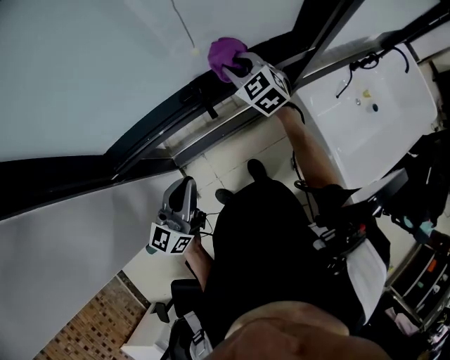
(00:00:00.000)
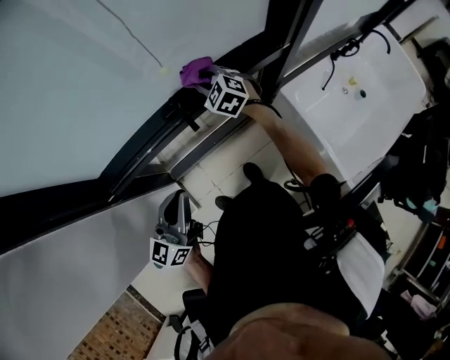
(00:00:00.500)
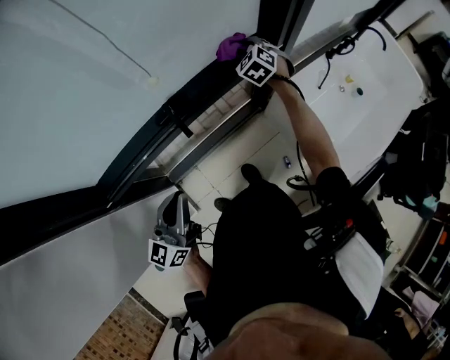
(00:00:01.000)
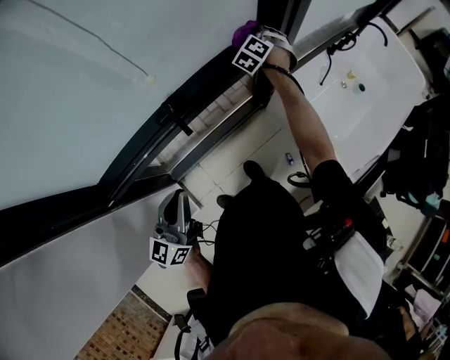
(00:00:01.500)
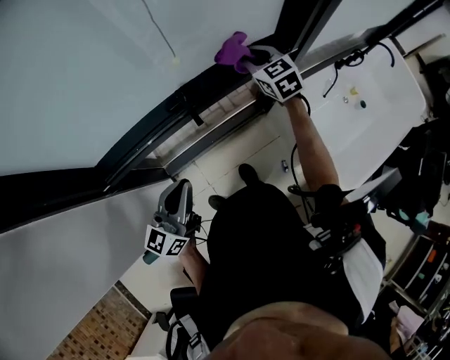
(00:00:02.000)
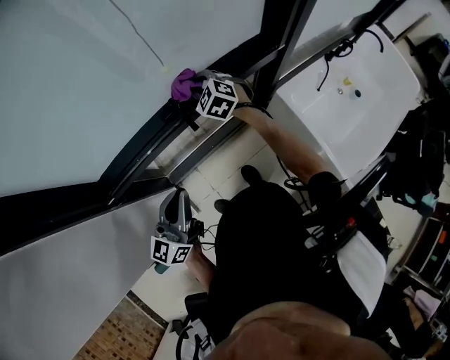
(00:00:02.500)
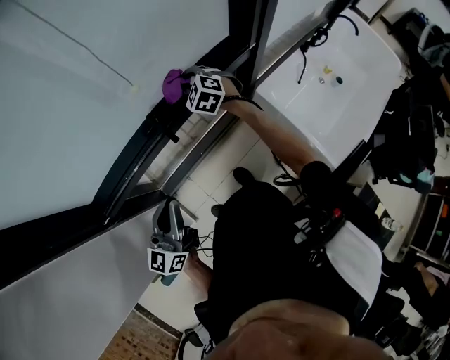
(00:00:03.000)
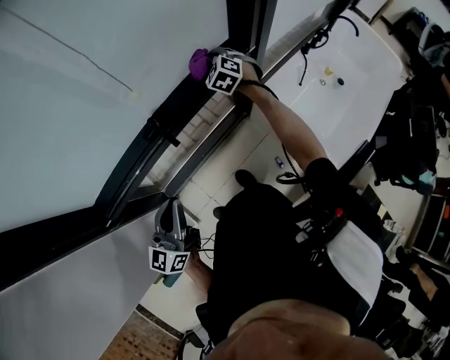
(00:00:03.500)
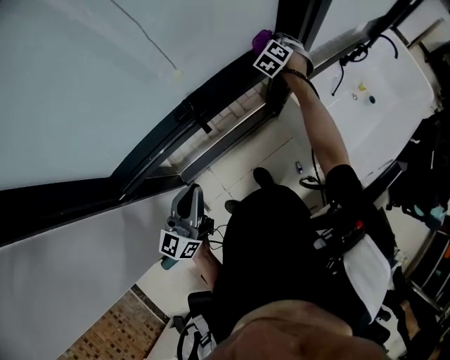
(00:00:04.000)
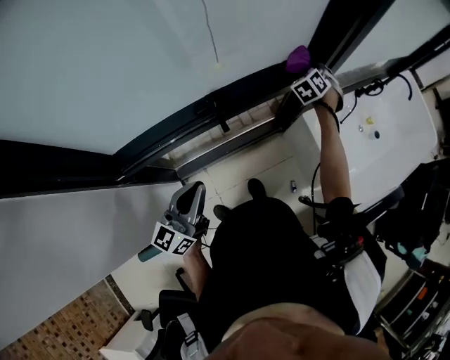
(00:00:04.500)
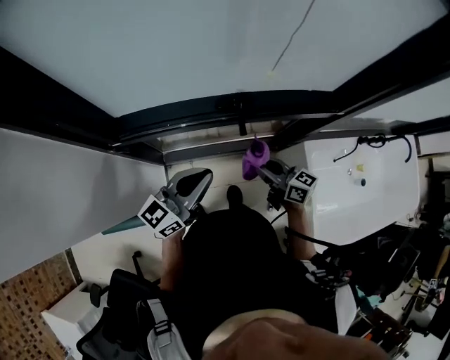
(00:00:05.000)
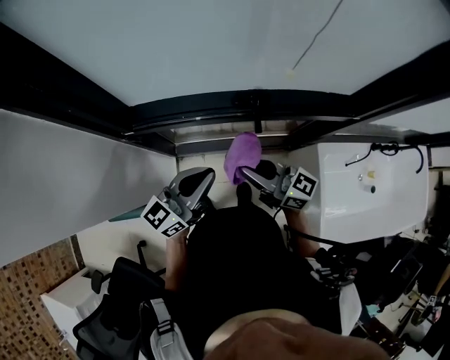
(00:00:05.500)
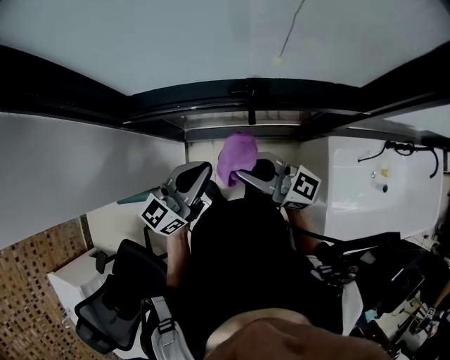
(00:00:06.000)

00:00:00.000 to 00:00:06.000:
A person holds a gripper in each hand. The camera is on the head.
00:00:00.000 to 00:00:02.000: The right gripper travels downward and back again, some 5 cm each way.
00:00:02.000 to 00:00:04.000: The right gripper ends up roughly 20 cm from where it was, and changes its angle by approximately 50 degrees.
00:00:04.000 to 00:00:06.000: The right gripper changes place by approximately 50 cm, and tips its fingers upward by some 50 degrees.

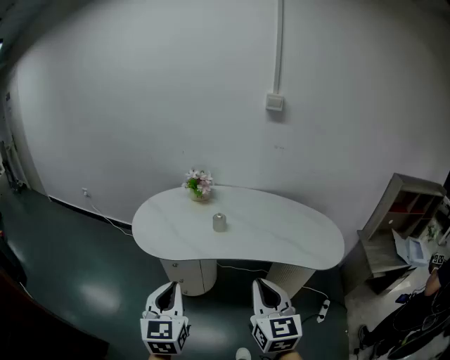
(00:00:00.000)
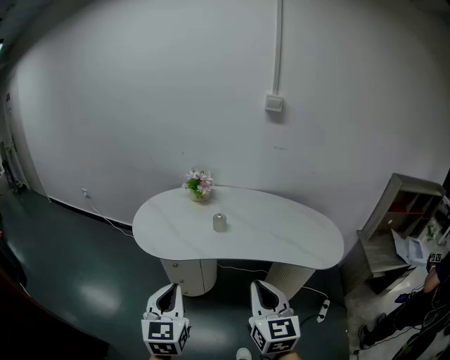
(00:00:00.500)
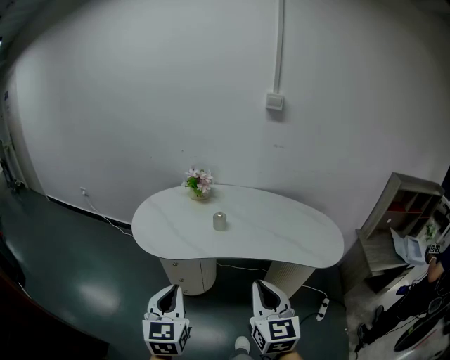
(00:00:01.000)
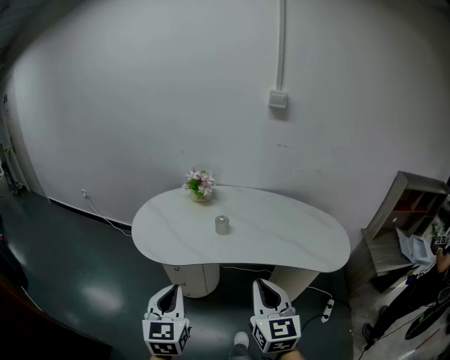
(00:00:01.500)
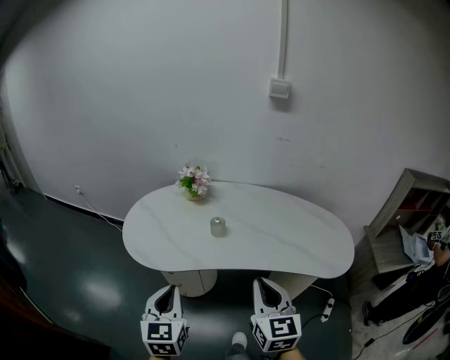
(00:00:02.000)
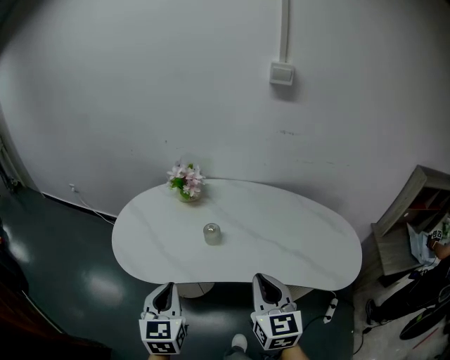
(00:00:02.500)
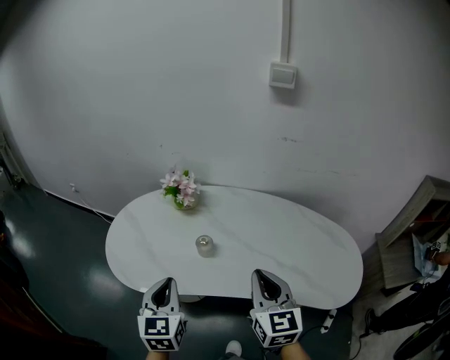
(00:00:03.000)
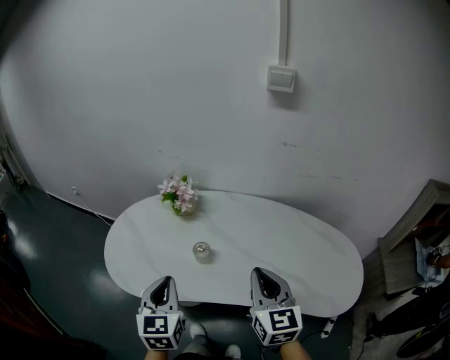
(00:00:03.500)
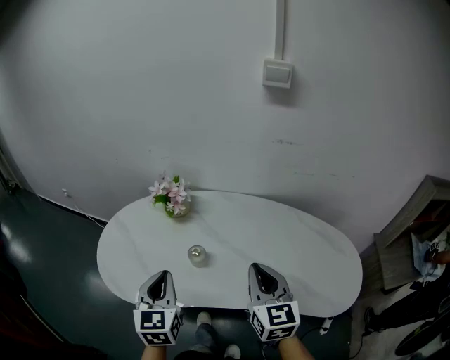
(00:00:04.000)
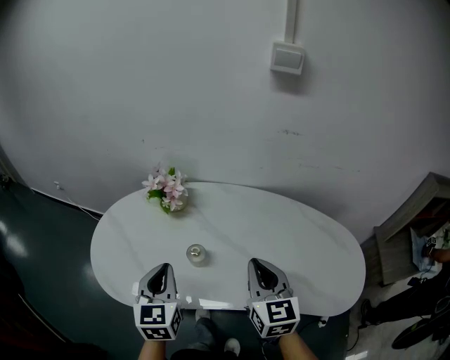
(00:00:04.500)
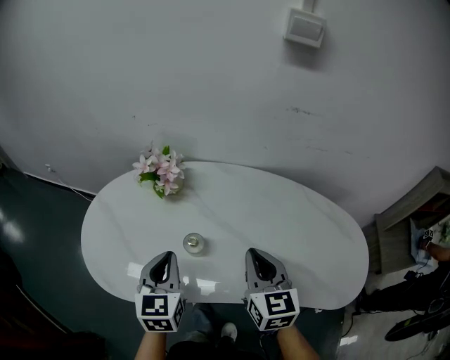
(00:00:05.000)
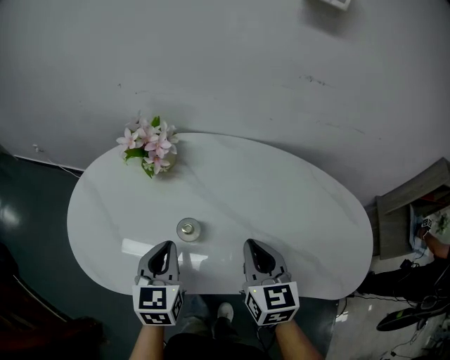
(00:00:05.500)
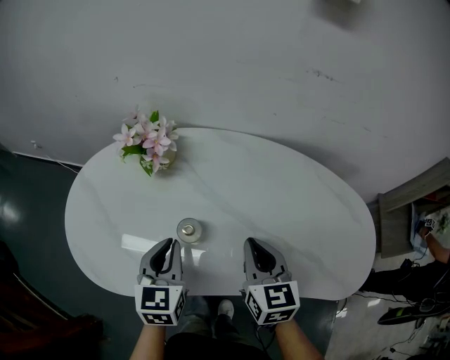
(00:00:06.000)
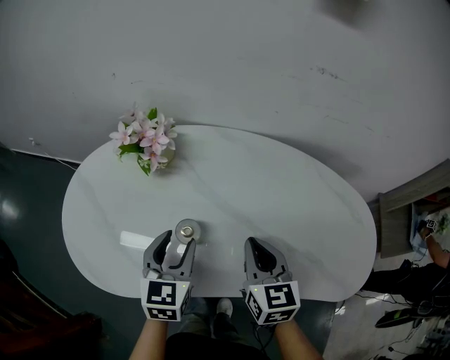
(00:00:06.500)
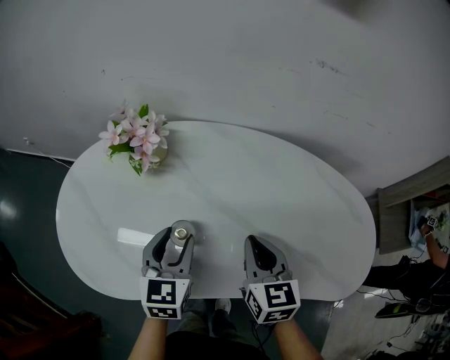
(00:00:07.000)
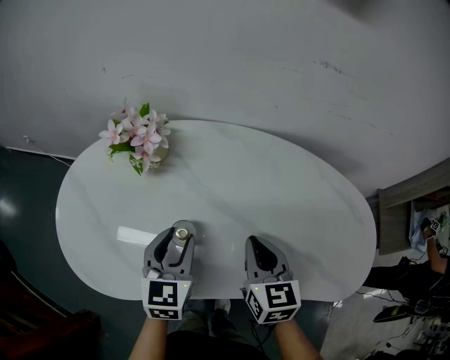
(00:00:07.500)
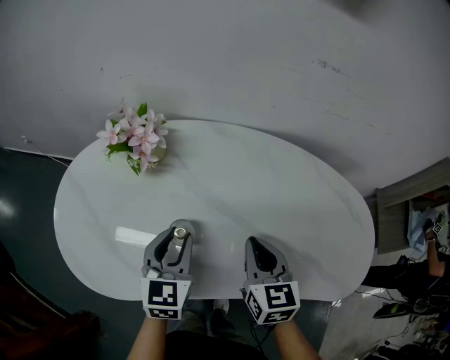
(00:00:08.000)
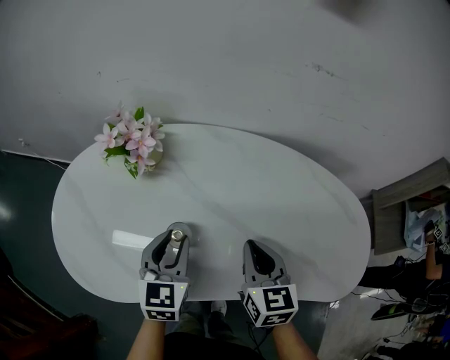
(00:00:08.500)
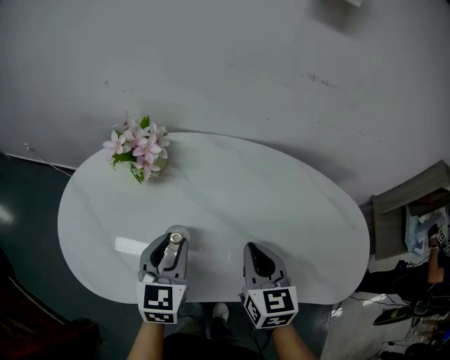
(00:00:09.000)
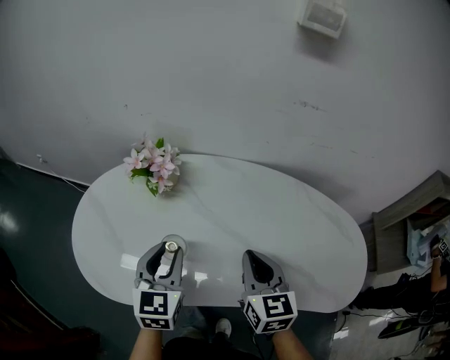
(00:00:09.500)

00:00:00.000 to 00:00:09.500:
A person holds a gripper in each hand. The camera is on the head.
00:00:00.000 to 00:00:02.000: Both grippers move forward, approximately 10 cm.
00:00:02.000 to 00:00:04.000: Both grippers move forward, roughly 20 cm.
00:00:04.000 to 00:00:05.500: The grippers both shift downward and forward by about 15 cm.
00:00:05.500 to 00:00:07.500: The left gripper moves roughly 5 cm, and opens.
00:00:07.500 to 00:00:09.500: The grippers both shift upward by roughly 5 cm.

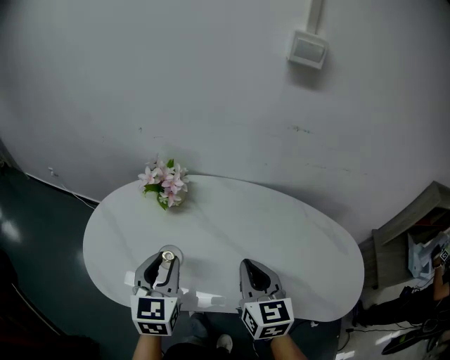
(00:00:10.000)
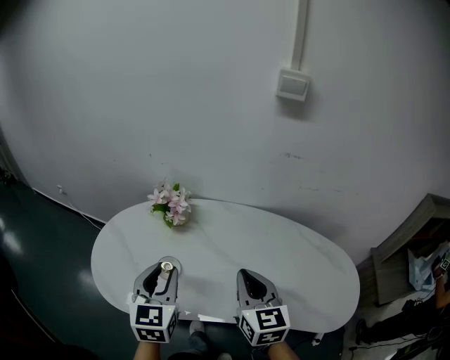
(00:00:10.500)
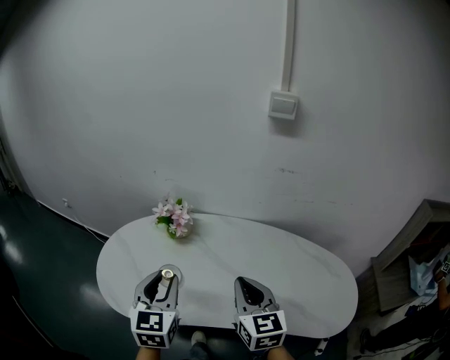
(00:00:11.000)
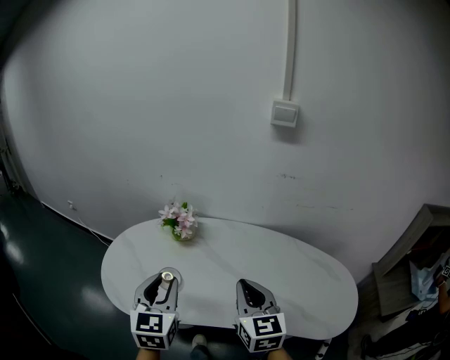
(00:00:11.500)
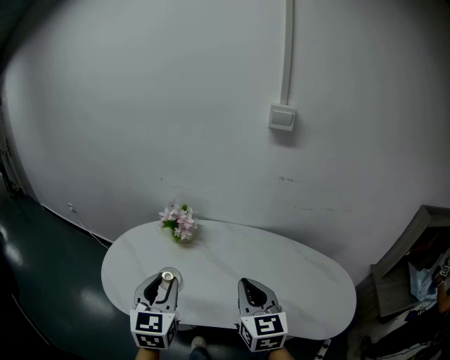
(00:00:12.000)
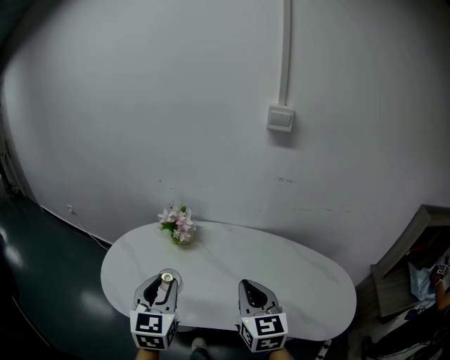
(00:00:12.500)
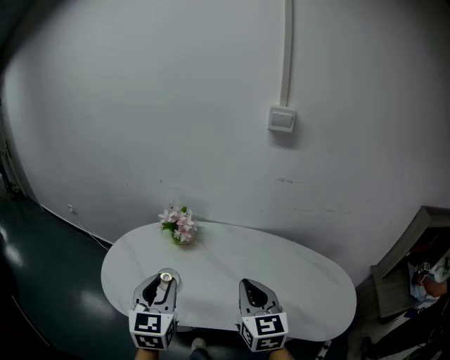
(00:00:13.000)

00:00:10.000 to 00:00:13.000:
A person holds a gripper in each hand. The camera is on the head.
00:00:10.000 to 00:00:11.500: The two grippers go approximately 10 cm upward and backward.
00:00:11.500 to 00:00:13.000: There are only small adjustments of the grippers.

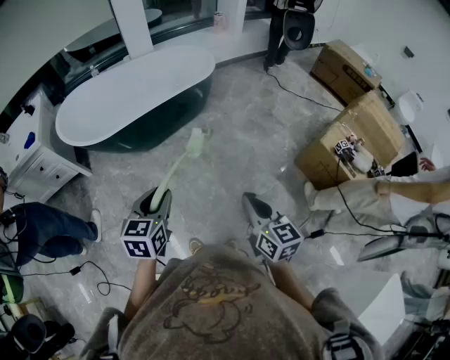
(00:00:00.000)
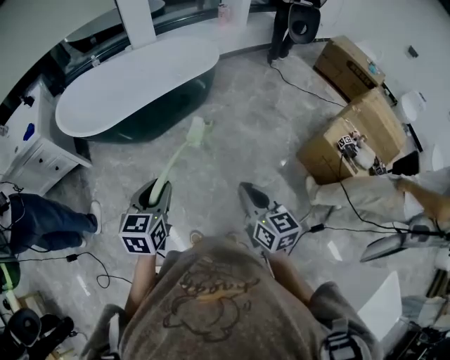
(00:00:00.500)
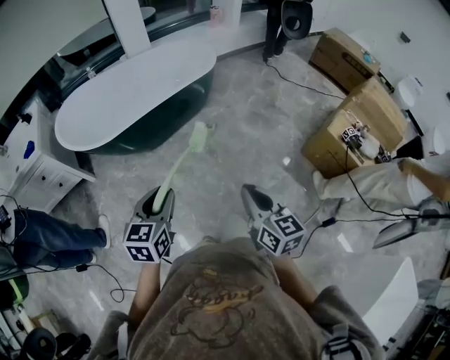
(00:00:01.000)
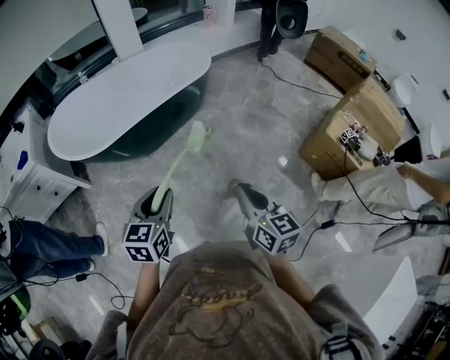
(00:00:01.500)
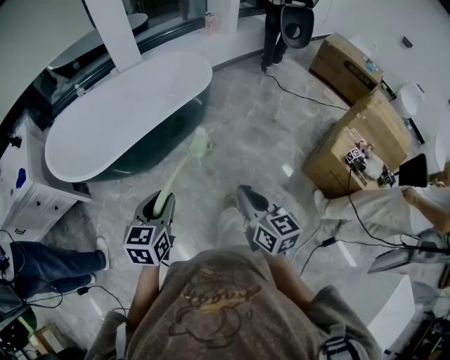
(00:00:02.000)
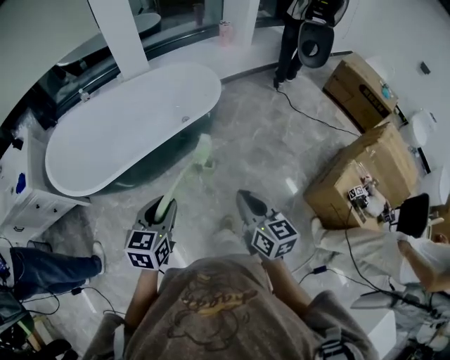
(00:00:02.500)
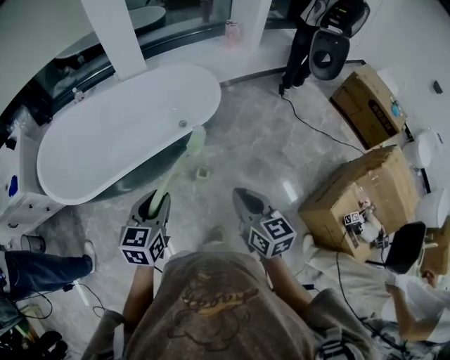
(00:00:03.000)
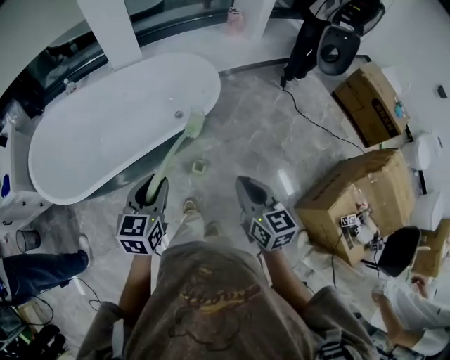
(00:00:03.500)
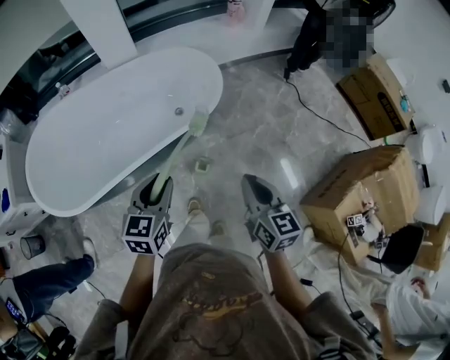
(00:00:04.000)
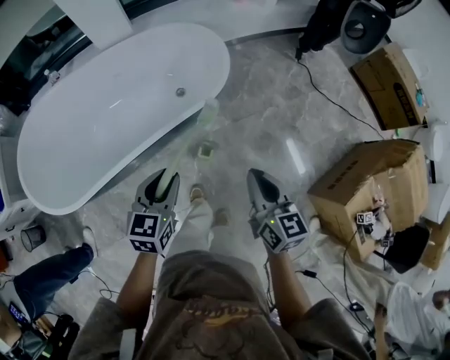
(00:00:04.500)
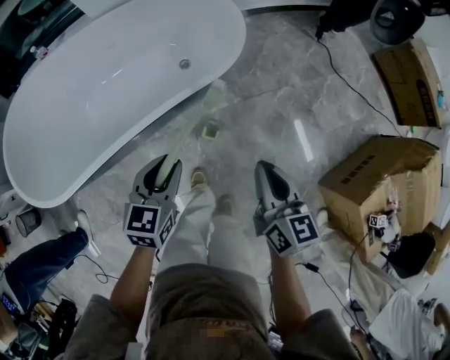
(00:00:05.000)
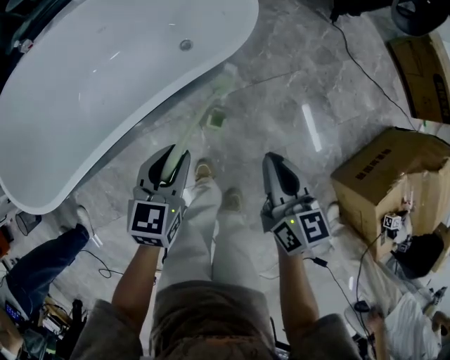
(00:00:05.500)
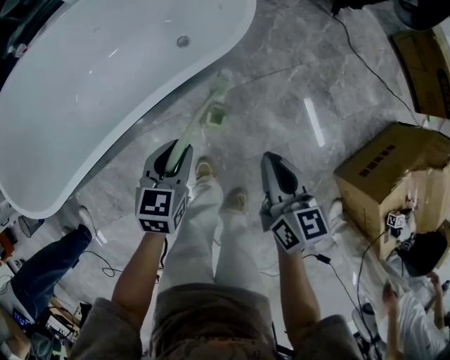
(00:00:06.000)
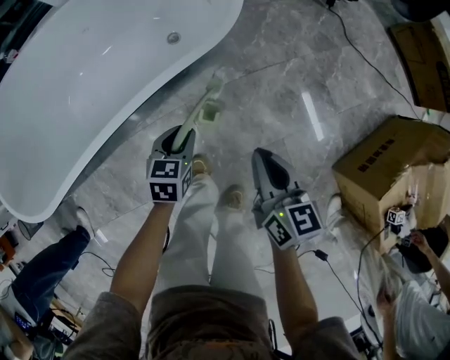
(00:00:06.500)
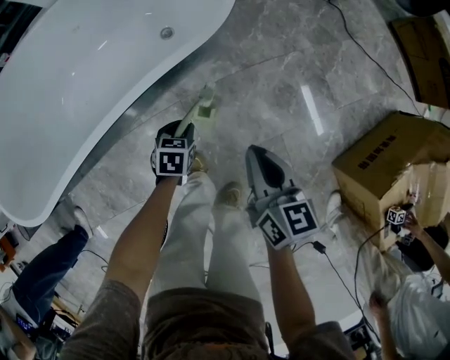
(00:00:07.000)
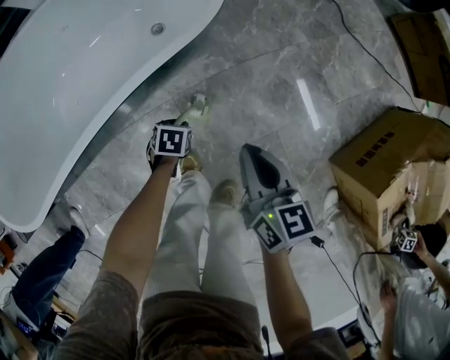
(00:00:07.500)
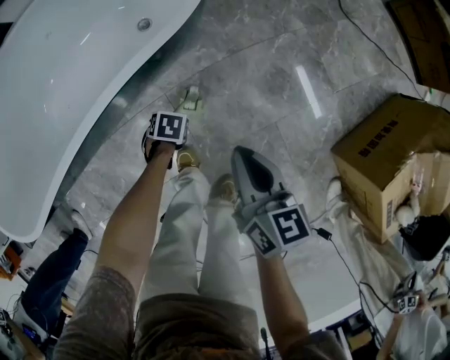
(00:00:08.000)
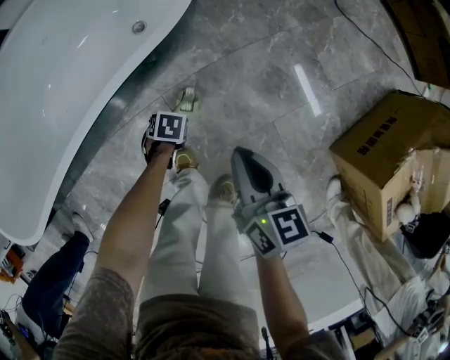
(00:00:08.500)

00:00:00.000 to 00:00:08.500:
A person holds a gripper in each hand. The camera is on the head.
00:00:00.000 to 00:00:02.000: The two grippers go roughly 20 cm forward.
00:00:02.000 to 00:00:04.000: Both grippers travel together forward, approximately 40 cm.
00:00:04.000 to 00:00:06.500: Both grippers travel together downward, approximately 35 cm. The left gripper turns by roughly 20 degrees.
00:00:06.500 to 00:00:08.500: The left gripper travels downward by some 20 cm, and tips its fingers downward by about 30 degrees; the right gripper heads downward, covering approximately 5 cm.
